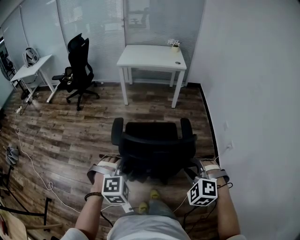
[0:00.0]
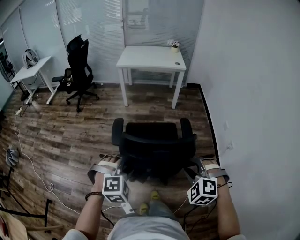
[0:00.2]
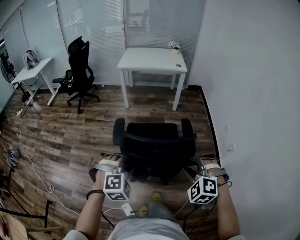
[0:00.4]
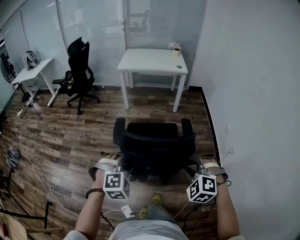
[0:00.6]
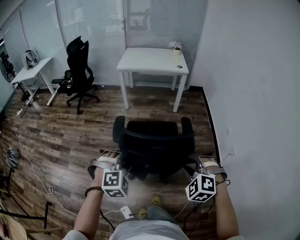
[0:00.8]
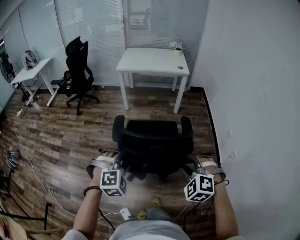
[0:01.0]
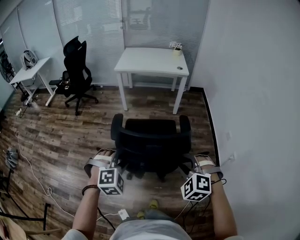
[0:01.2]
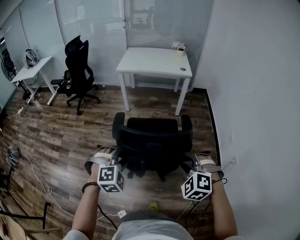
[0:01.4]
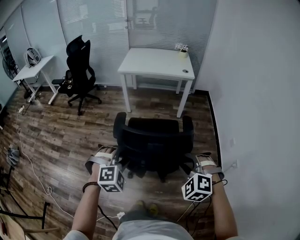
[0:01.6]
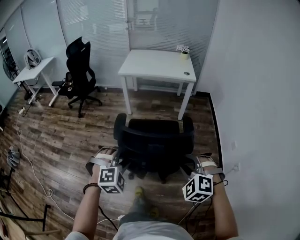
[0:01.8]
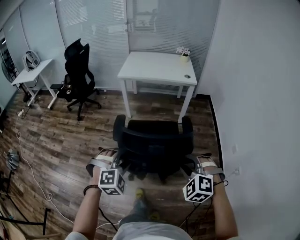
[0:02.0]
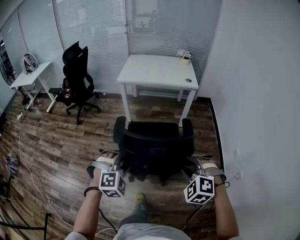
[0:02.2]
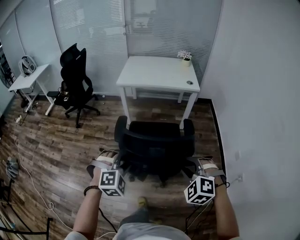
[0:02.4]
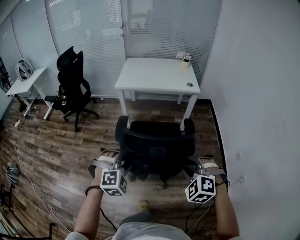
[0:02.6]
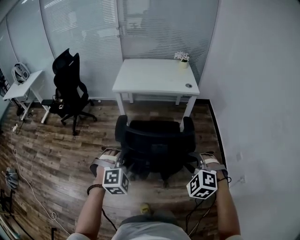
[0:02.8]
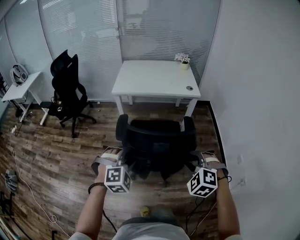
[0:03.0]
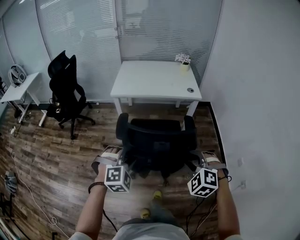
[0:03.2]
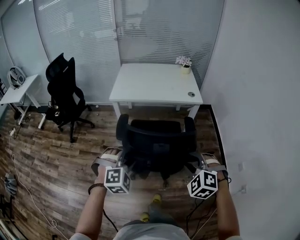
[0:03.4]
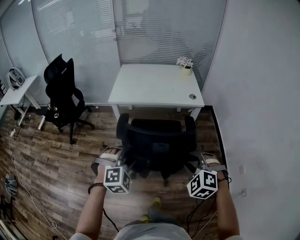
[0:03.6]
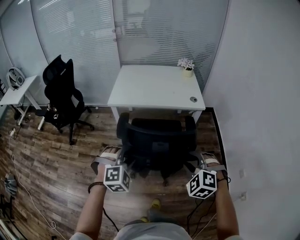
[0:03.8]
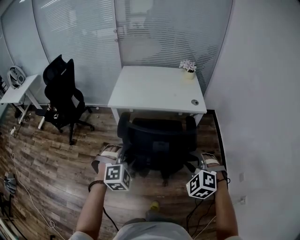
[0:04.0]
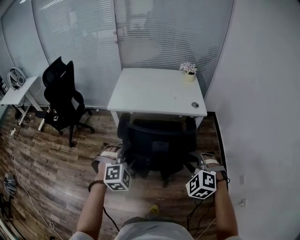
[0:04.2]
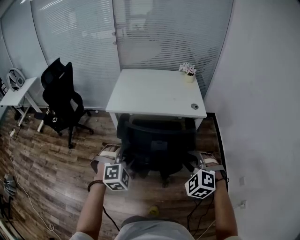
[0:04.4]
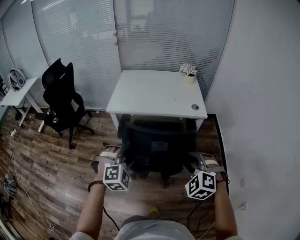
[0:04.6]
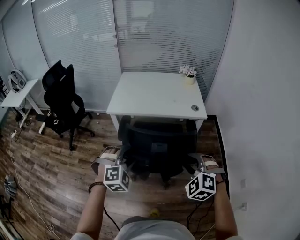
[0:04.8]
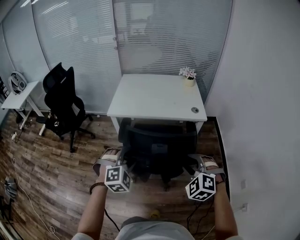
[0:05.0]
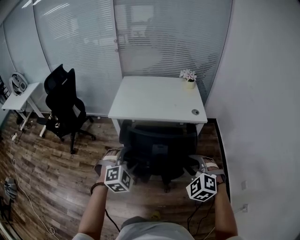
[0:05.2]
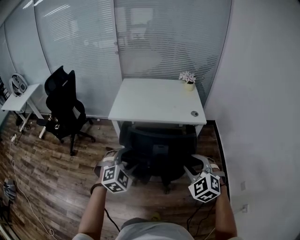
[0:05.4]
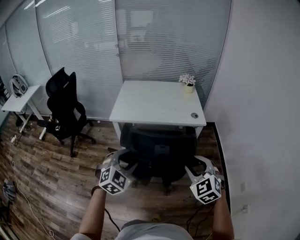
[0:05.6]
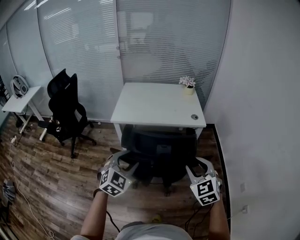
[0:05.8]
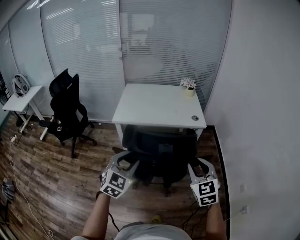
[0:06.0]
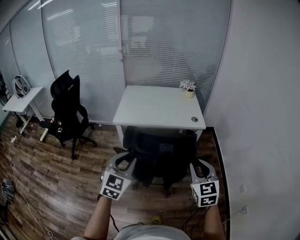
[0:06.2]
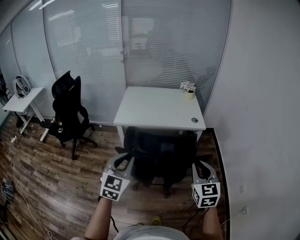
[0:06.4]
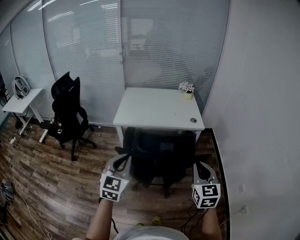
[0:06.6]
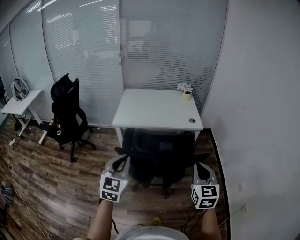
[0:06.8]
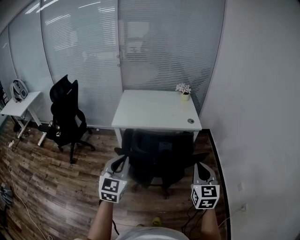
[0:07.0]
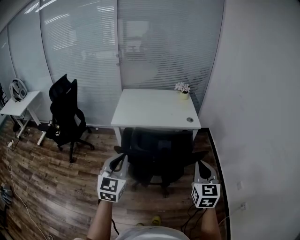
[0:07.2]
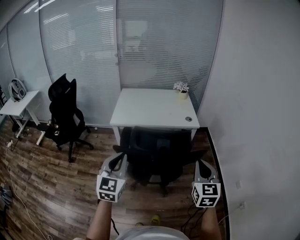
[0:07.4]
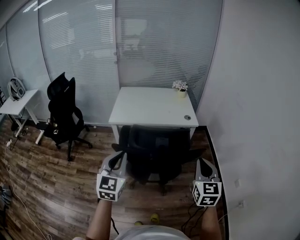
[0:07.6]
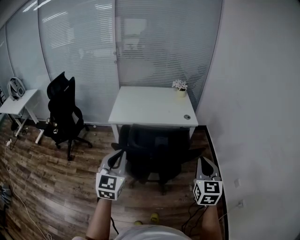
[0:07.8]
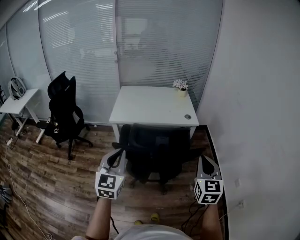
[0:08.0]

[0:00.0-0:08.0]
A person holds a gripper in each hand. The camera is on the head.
0:00.0 to 0:01.6: Both grippers travel together forward, about 25 cm.
0:01.6 to 0:03.2: Both grippers move forward, some 40 cm.
0:03.2 to 0:04.8: Both grippers move forward, approximately 20 cm.
0:04.8 to 0:06.4: The left gripper goes about 15 cm upward, backward and to the left, twists approximately 50 degrees counterclockwise, seen from behind, and closes up. The right gripper heads upward and backward, covering some 10 cm, rolls clockwise, seen from behind, by some 50 degrees, and closes.
0:06.4 to 0:08.0: The right gripper ends up approximately 5 cm from where it was, while the left gripper shifts by some 5 cm.

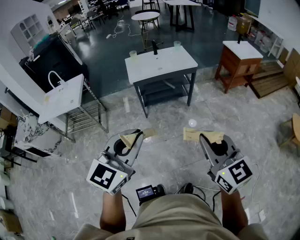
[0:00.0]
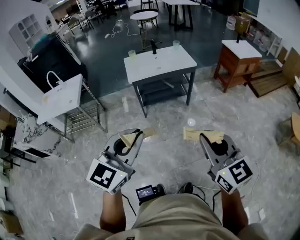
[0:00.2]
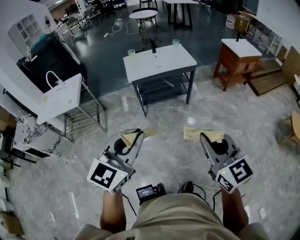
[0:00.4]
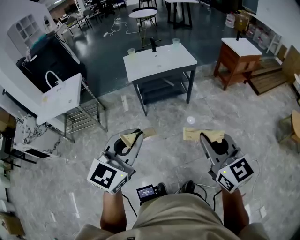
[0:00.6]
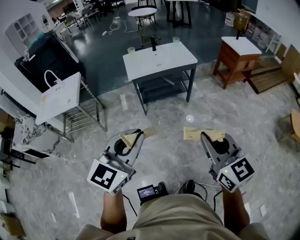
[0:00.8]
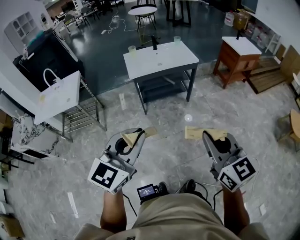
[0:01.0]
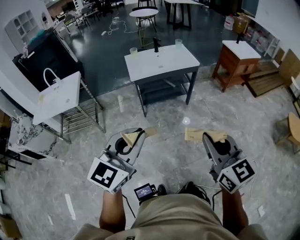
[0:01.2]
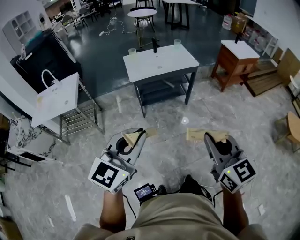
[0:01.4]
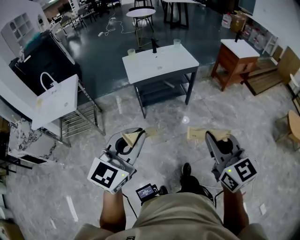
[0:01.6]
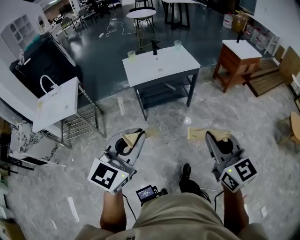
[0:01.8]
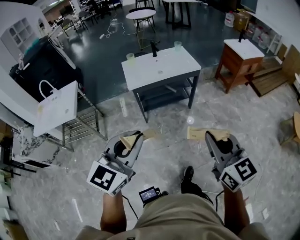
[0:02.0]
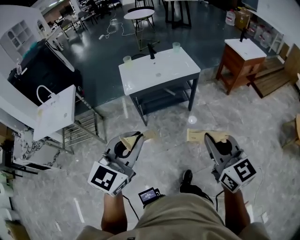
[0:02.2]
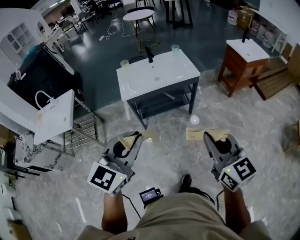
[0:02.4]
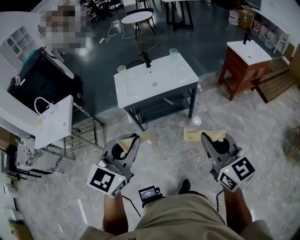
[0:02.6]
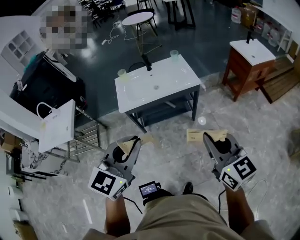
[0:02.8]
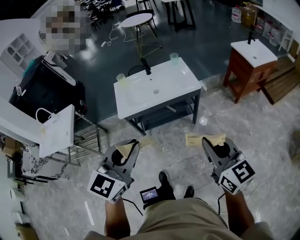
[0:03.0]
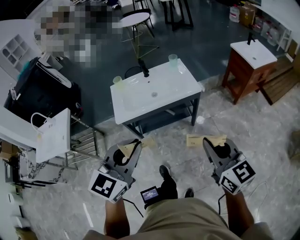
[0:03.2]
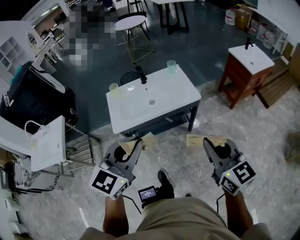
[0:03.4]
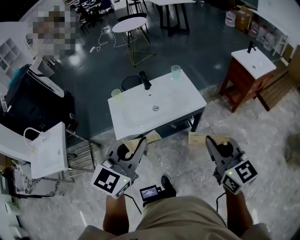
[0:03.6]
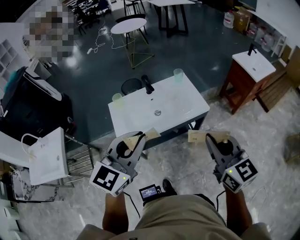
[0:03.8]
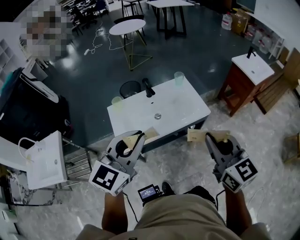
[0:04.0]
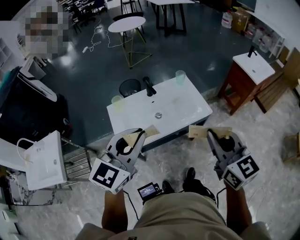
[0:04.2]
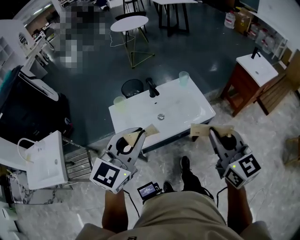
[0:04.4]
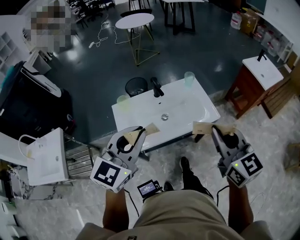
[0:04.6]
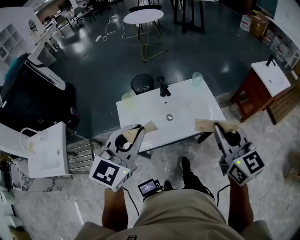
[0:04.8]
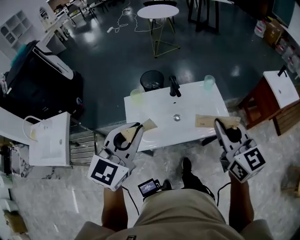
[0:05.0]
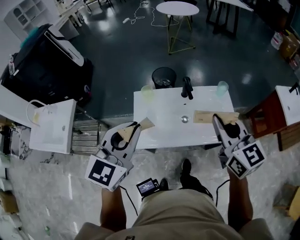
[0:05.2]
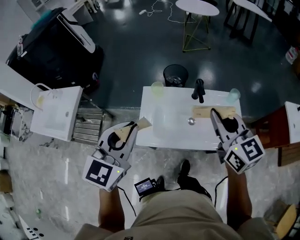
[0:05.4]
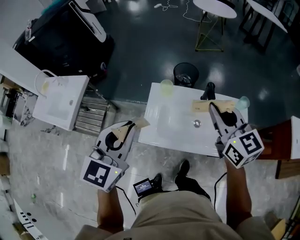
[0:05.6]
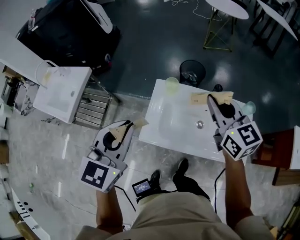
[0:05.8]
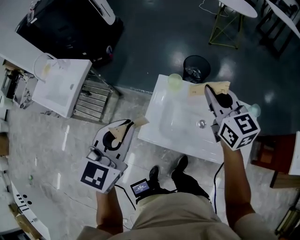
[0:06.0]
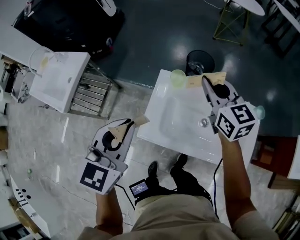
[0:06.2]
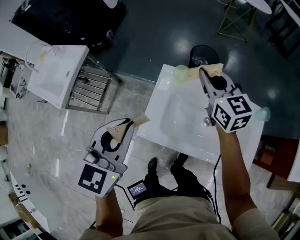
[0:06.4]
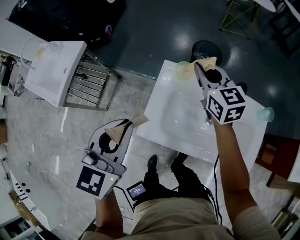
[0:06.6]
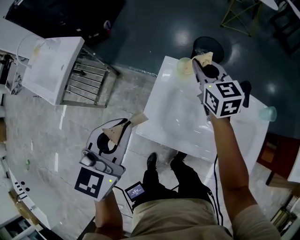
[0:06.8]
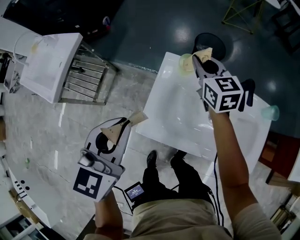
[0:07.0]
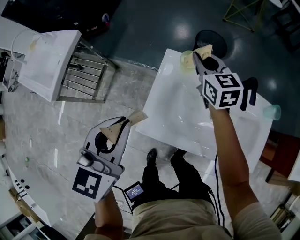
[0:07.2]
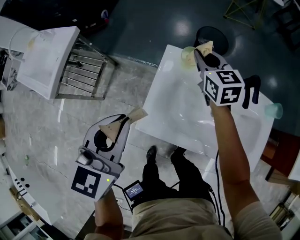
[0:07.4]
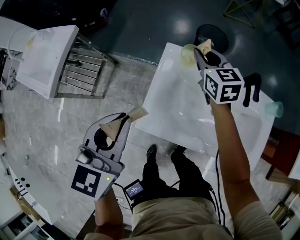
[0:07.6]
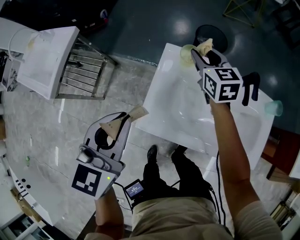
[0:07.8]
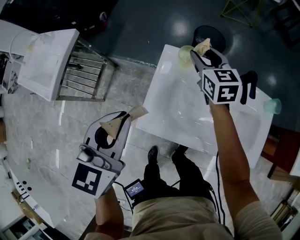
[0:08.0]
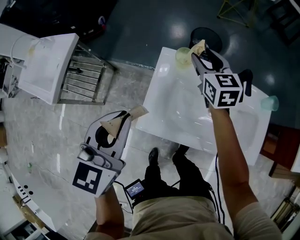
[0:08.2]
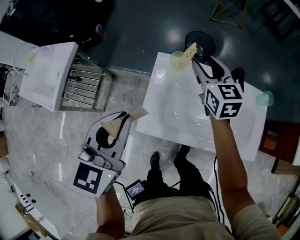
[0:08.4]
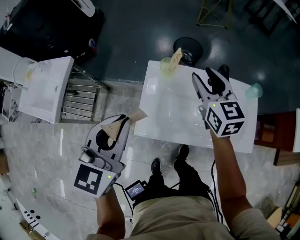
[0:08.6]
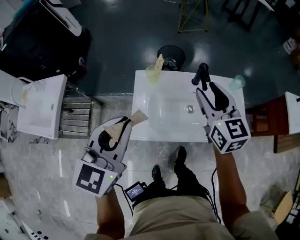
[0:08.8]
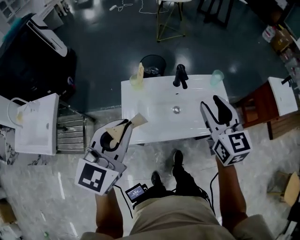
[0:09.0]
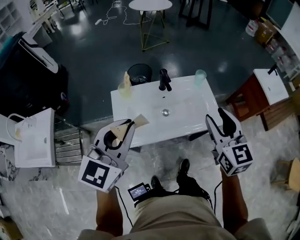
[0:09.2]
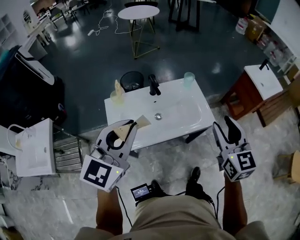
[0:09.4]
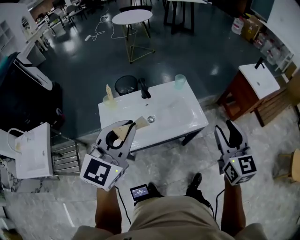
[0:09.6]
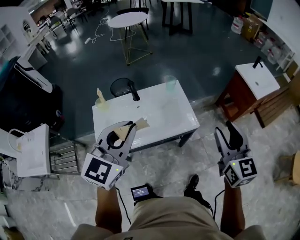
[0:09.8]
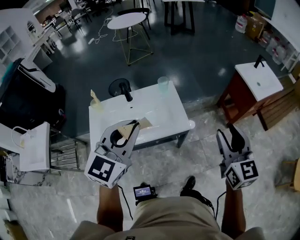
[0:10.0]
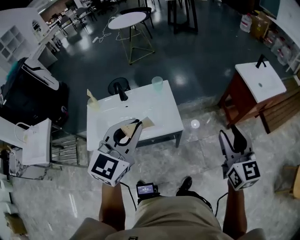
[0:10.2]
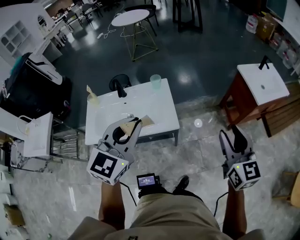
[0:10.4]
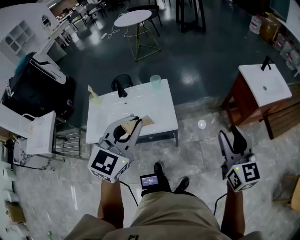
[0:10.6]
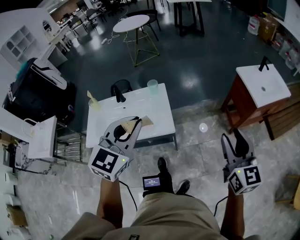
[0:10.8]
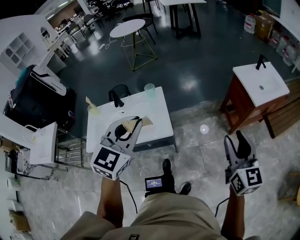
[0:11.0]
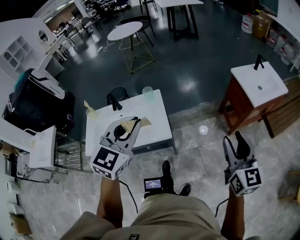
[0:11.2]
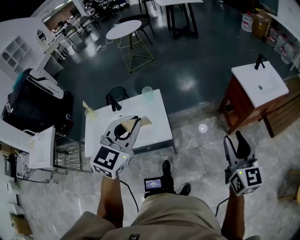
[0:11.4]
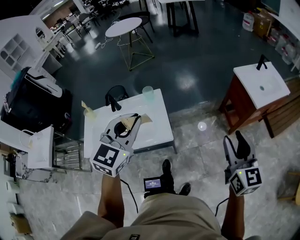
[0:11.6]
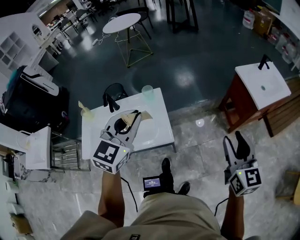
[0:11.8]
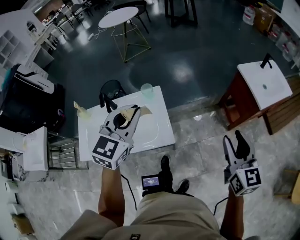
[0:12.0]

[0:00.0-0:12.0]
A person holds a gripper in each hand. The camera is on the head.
0:00.0 to 0:01.6: Both grippers move to the left and forward, some 10 cm.
0:01.6 to 0:03.0: Both grippers travel together forward and to the right, approximately 35 cm.
0:03.0 to 0:04.4: Both grippers move forward and to the left, roughly 35 cm.
0:04.4 to 0:06.0: The left gripper changes place by roughly 20 cm, and changes its angle by roughly 50 degrees; the right gripper ends up some 40 cm from where it was, and turns by about 40 degrees.
0:06.0 to 0:07.6: The right gripper shifts about 25 cm downward and forward. The left gripper goes about 15 cm downward.
0:07.6 to 0:09.0: The left gripper shifts roughly 15 cm upward, and turns by some 30 degrees. Meanwhile the right gripper shifts by approximately 40 cm, turns by about 30 degrees, and opens.
0:09.0 to 0:10.4: Both grippers are carried to the right, about 50 cm.
0:10.4 to 0:12.0: The right gripper moves forward, approximately 10 cm; the left gripper goes roughly 20 cm forward.

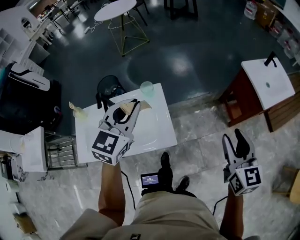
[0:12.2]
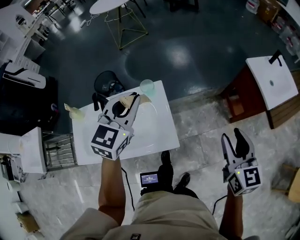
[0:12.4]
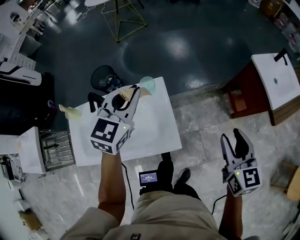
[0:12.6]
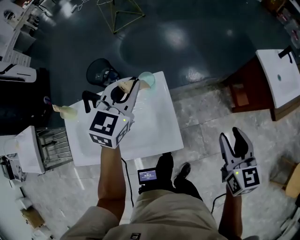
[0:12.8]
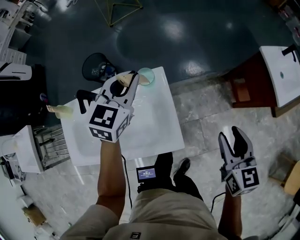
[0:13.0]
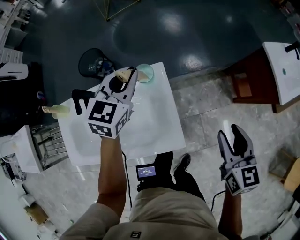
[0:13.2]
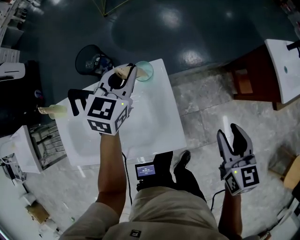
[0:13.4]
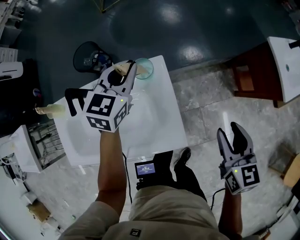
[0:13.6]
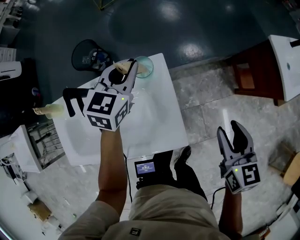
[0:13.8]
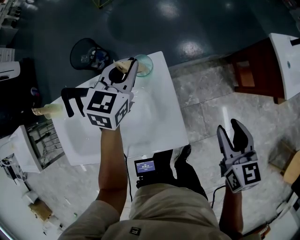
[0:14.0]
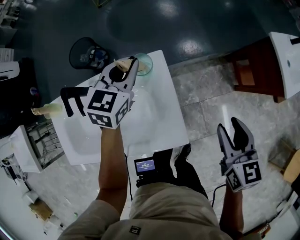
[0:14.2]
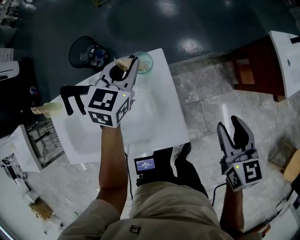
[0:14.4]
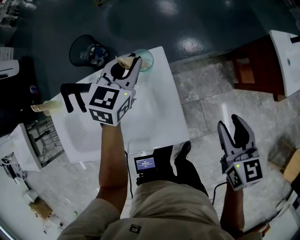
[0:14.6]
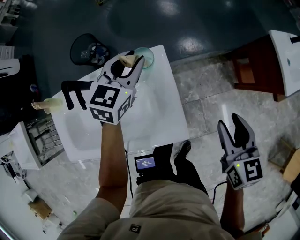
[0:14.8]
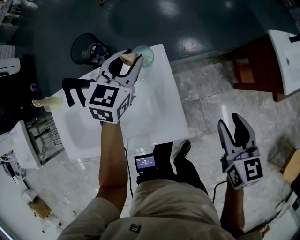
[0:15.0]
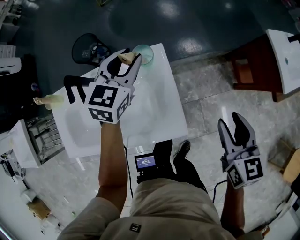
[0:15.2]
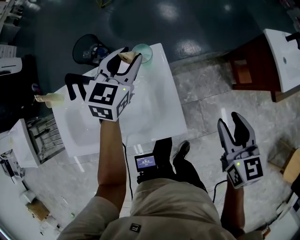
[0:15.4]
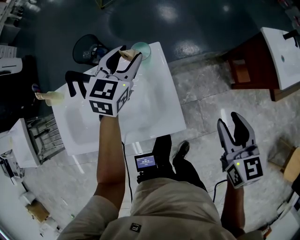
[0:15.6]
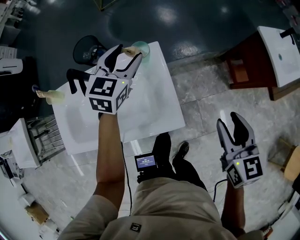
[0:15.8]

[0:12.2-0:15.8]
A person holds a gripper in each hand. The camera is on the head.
0:12.2 to 0:14.0: The right gripper travels downward, forward and to the left by approximately 25 cm, and turns by approximately 20 degrees. The left gripper goes approximately 30 cm downward and forward.
0:14.0 to 0:15.8: The left gripper moves some 5 cm, and opens. The right gripper is displaced backward by roughly 5 cm.
